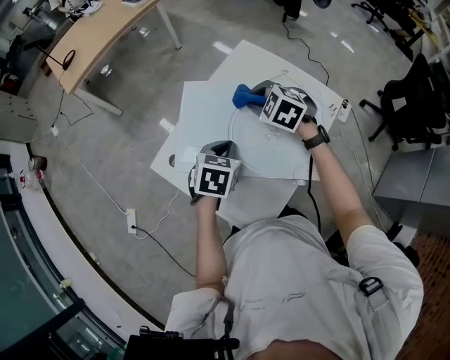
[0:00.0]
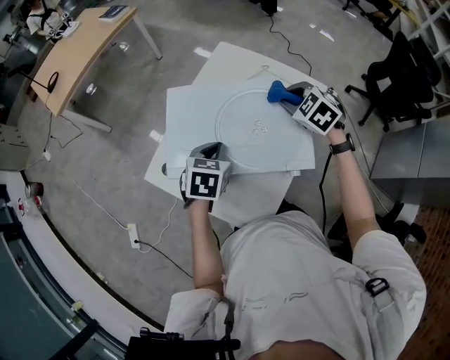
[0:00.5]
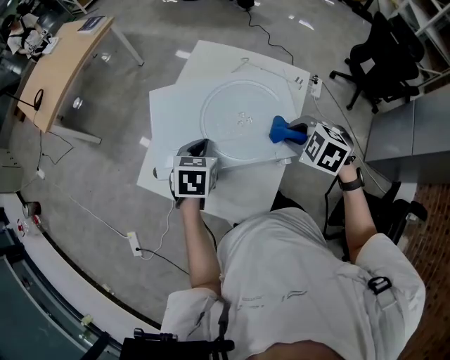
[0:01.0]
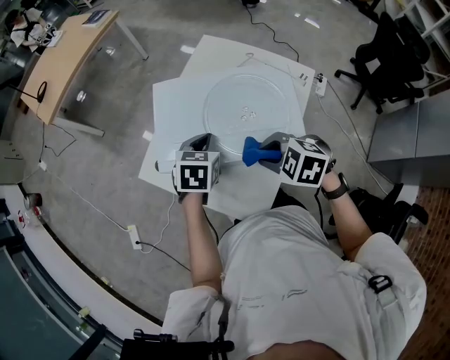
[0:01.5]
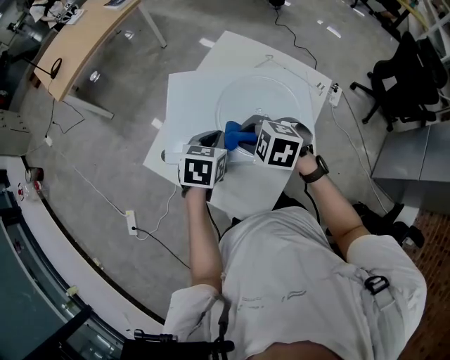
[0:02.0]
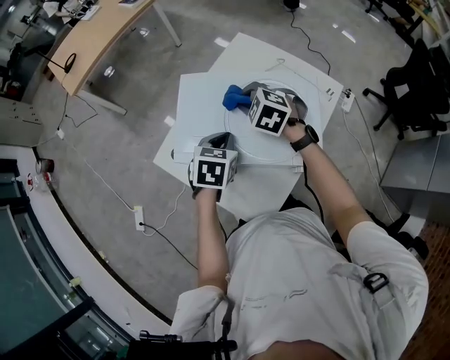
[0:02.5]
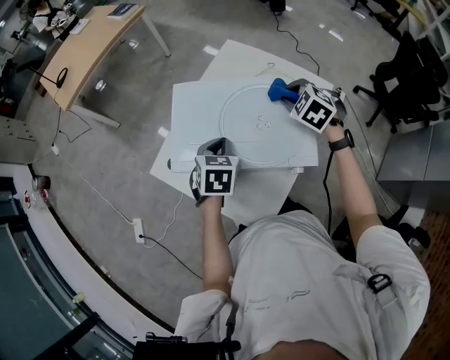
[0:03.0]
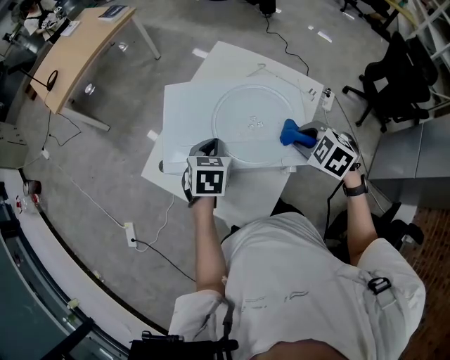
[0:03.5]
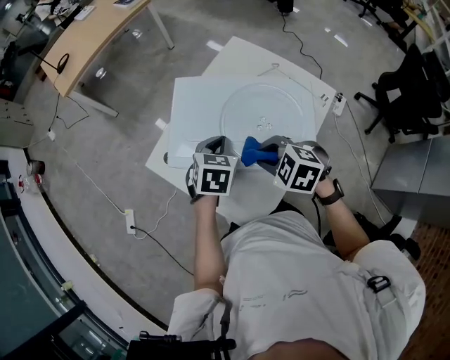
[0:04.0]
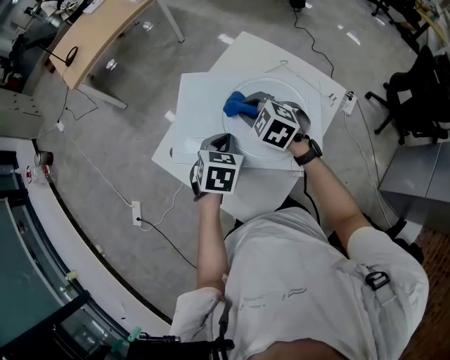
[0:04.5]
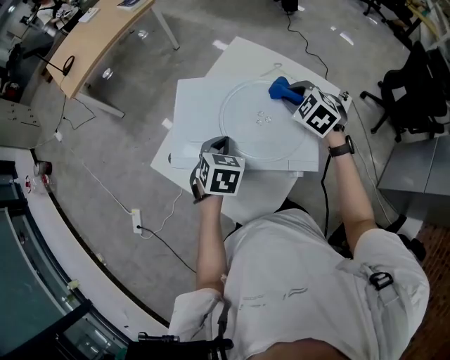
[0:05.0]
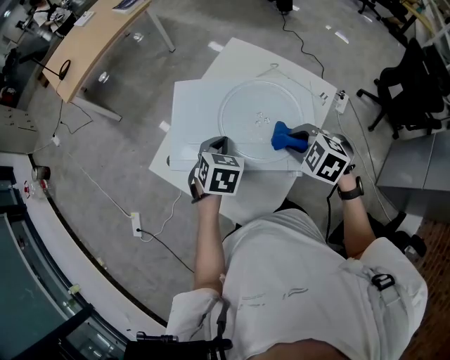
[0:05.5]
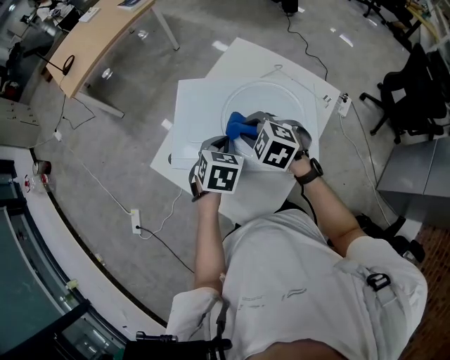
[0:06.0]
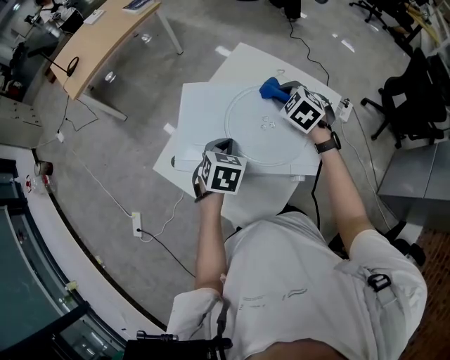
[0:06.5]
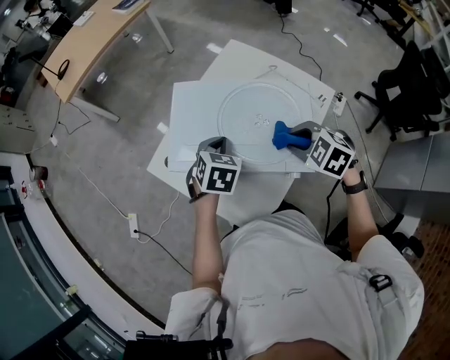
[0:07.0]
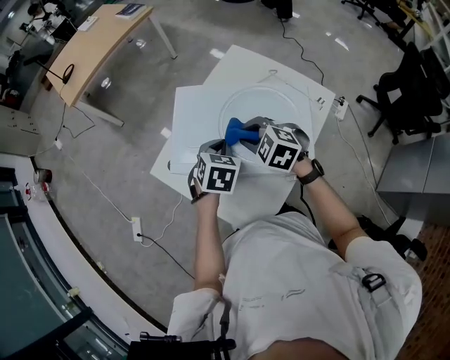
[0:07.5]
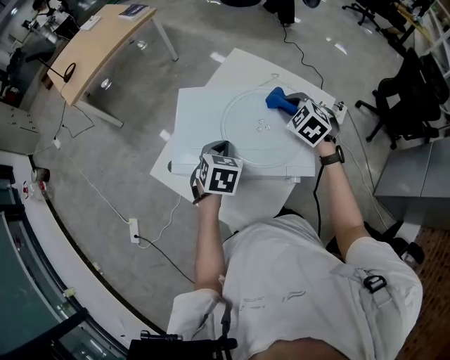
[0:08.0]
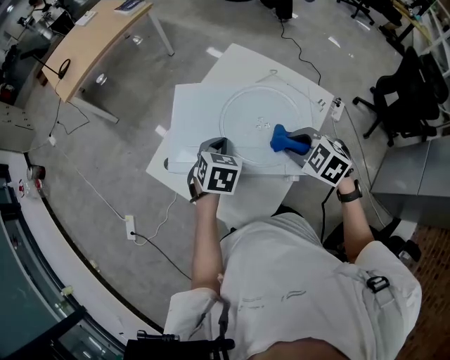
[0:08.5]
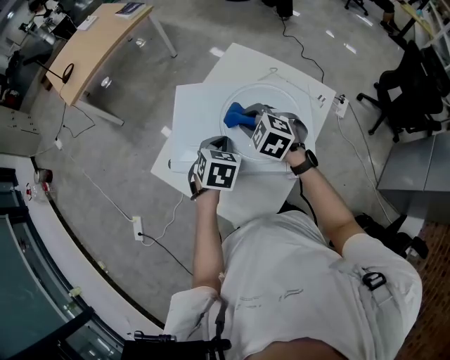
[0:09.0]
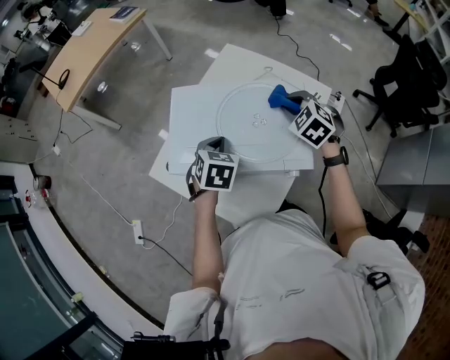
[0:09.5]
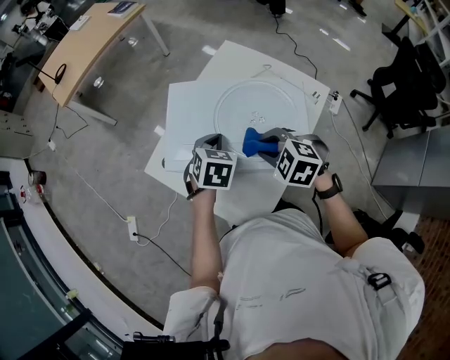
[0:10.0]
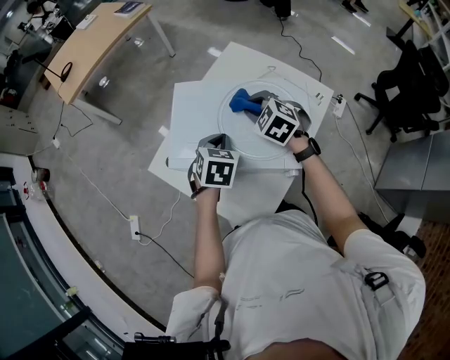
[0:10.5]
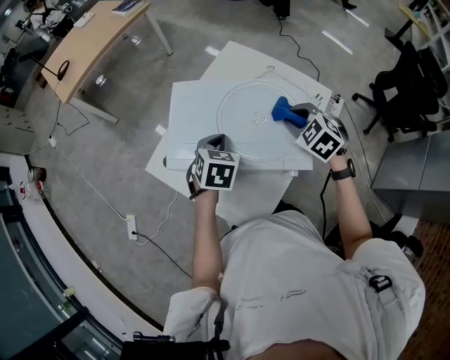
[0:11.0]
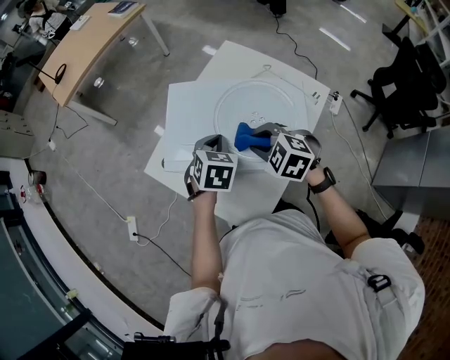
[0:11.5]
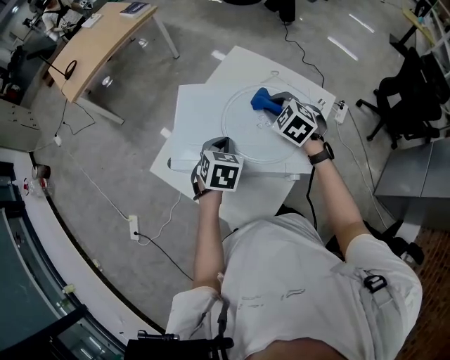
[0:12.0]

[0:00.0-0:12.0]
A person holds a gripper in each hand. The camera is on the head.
0:00.0 to 0:02.0: The right gripper goes about 15 cm backward.
0:02.0 to 0:04.0: The right gripper travels to the right and back again, approximately 15 cm each way.
0:04.0 to 0:06.0: The right gripper goes some 10 cm forward, and moves some 15 cm to the right and comes back.
0:06.0 to 0:08.0: The right gripper swings forward and backward, roughly 15 cm each way, with 2 reversals.
0:08.0 to 0:10.0: The right gripper goes left and right, approximately 15 cm each way, reversing 2 times, and rotates roughly 20 degrees.
0:10.0 to 0:12.0: The right gripper swings forward and backward, about 15 cm each way, with 2 reversals.

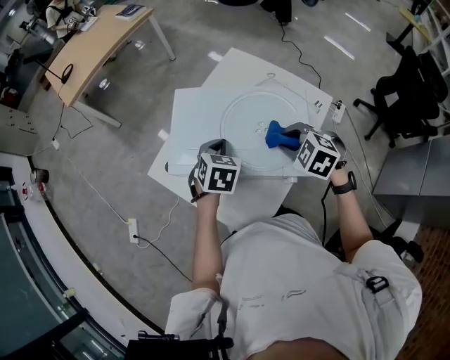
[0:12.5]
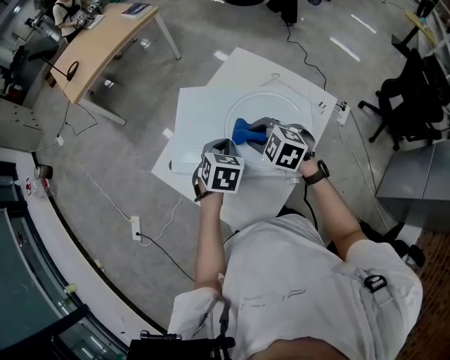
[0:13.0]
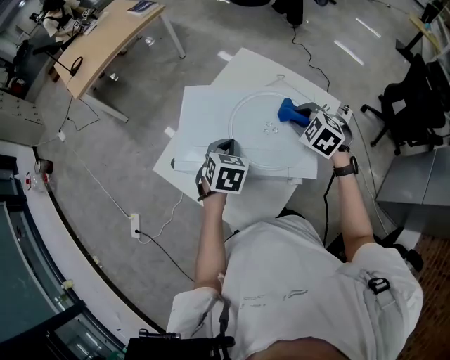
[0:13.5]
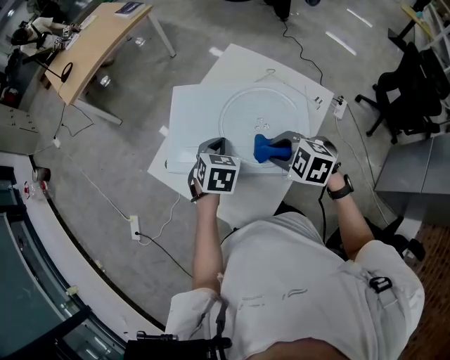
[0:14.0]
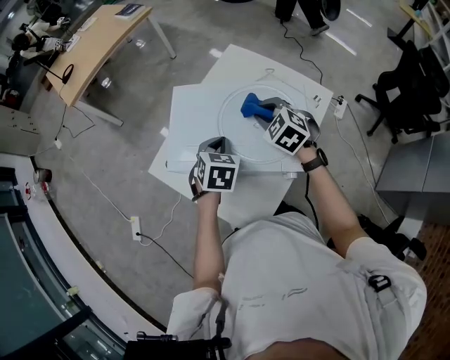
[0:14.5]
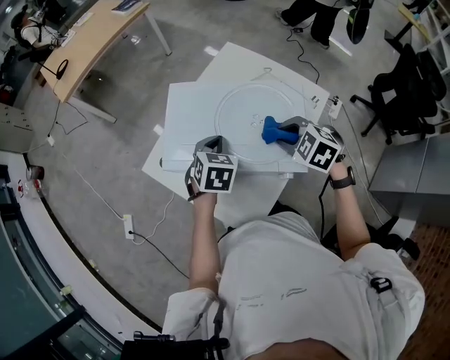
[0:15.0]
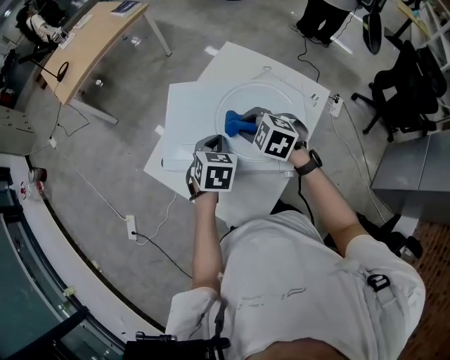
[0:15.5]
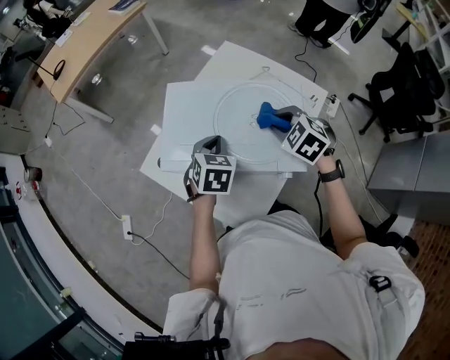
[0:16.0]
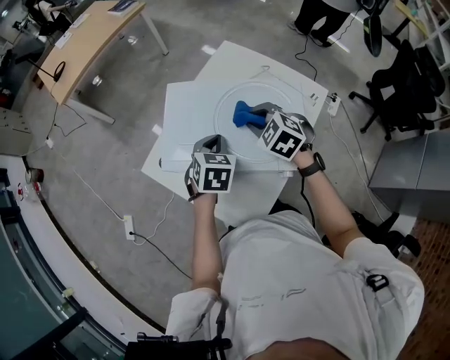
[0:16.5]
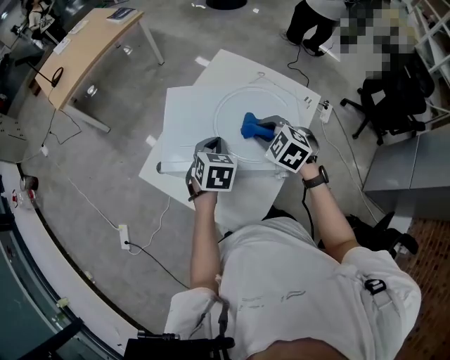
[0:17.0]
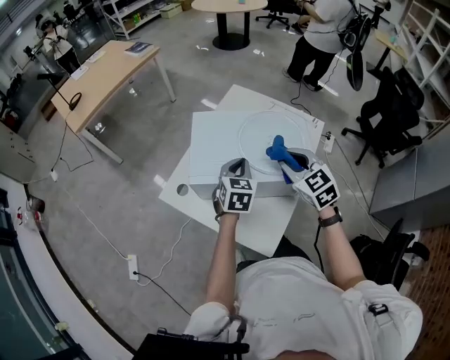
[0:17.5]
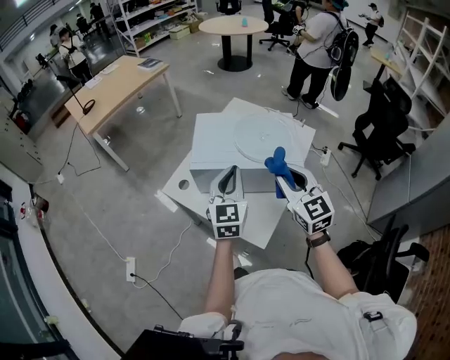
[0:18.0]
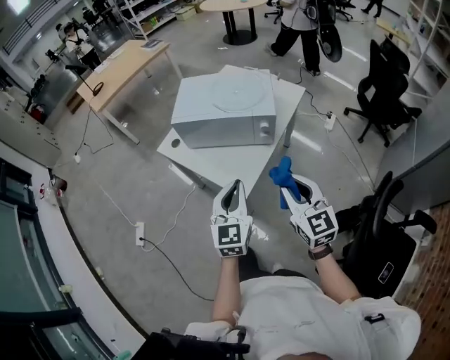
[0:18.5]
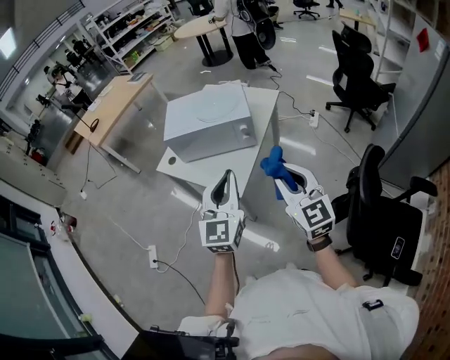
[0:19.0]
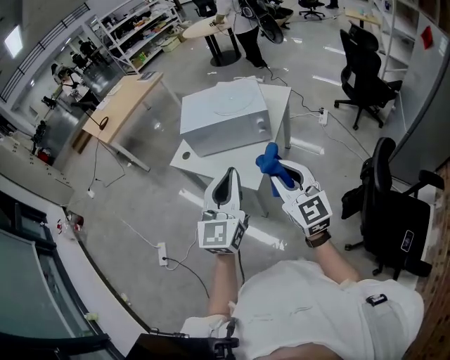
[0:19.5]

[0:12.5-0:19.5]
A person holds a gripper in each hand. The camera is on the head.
0:12.5 to 0:14.5: The right gripper swings left and right, about 15 cm each way, with 2 reversals.
0:16.0 to 0:17.5: The right gripper heads backward, upward and to the left, covering roughly 10 cm, and rotates approximately 30 degrees.
0:17.5 to 0:19.5: The two grippers travel together, backward, approximately 40 cm. The right gripper tilts its fingers approximately 30 degrees upward; the left gripper goes roughly 25 cm upward, and tips its fingers upward by roughly 40 degrees.

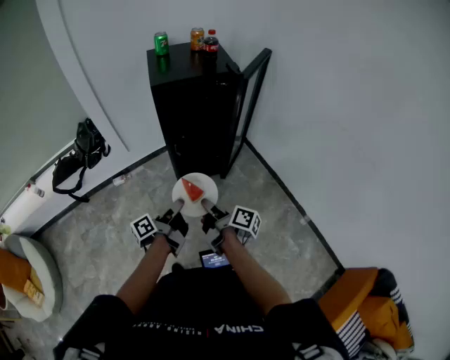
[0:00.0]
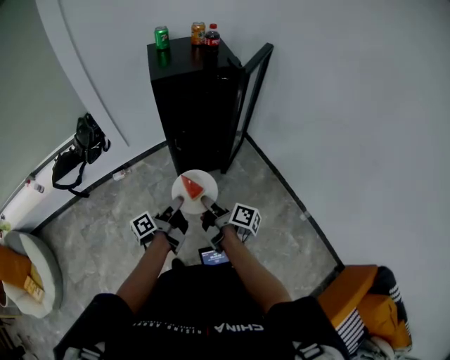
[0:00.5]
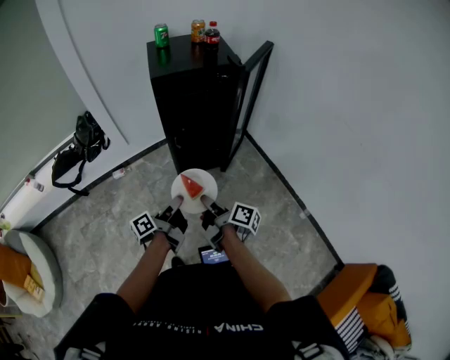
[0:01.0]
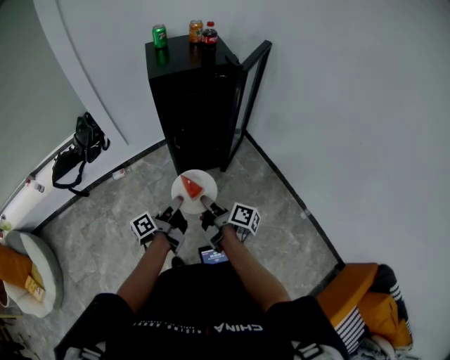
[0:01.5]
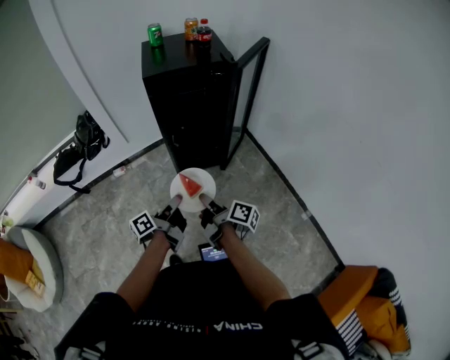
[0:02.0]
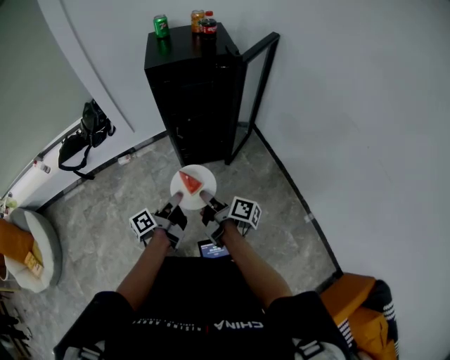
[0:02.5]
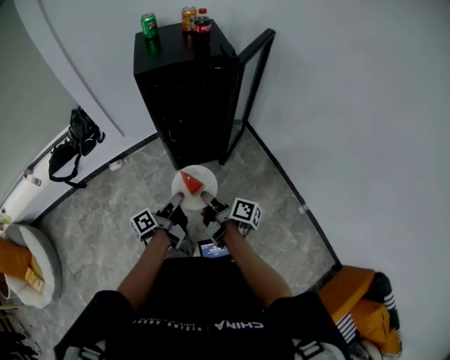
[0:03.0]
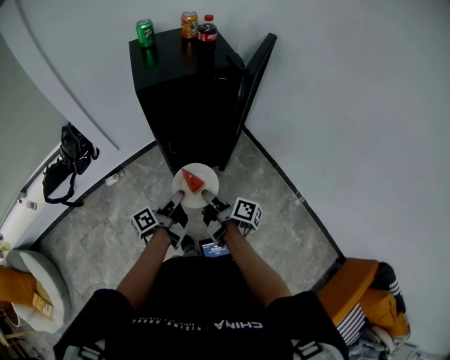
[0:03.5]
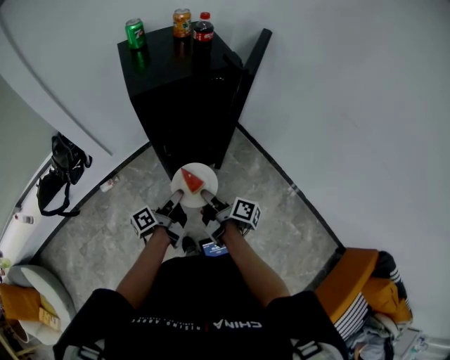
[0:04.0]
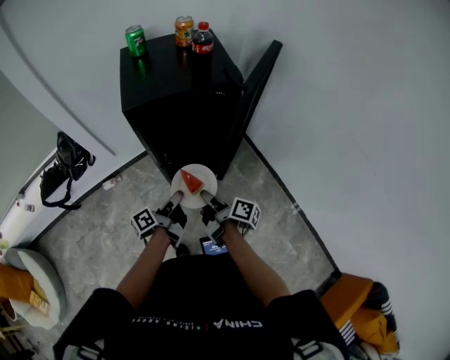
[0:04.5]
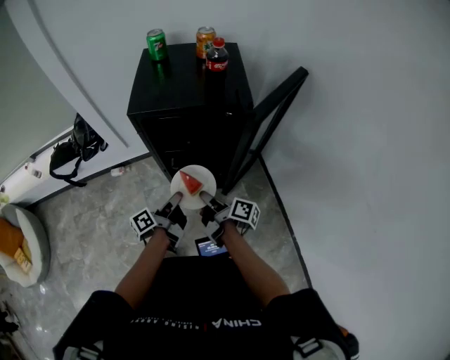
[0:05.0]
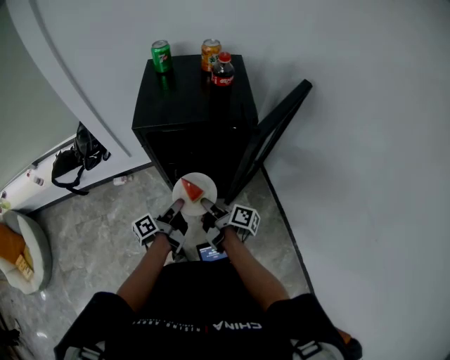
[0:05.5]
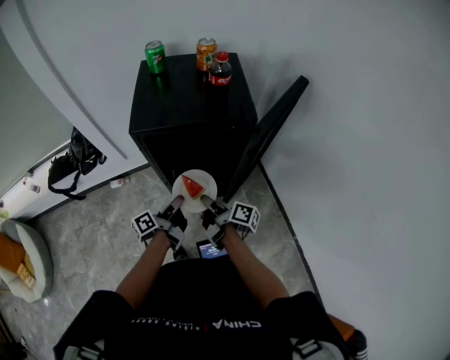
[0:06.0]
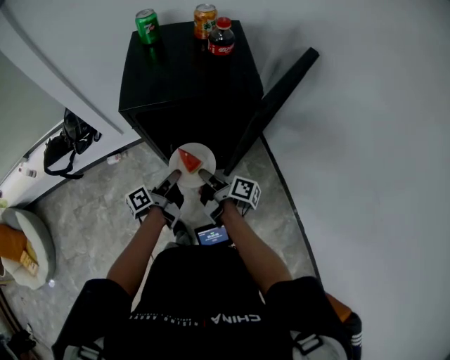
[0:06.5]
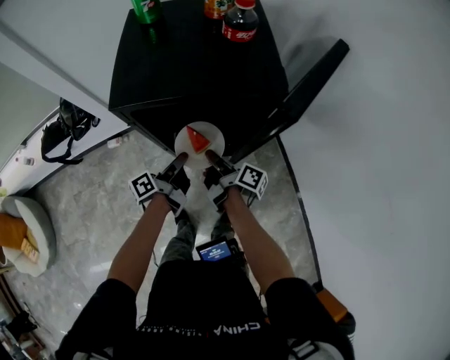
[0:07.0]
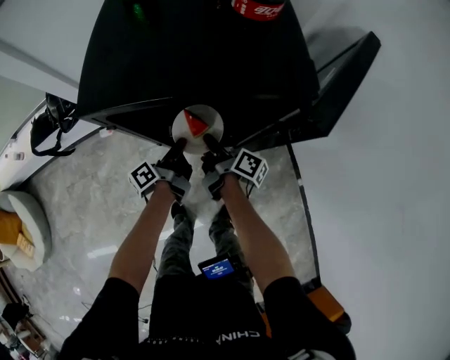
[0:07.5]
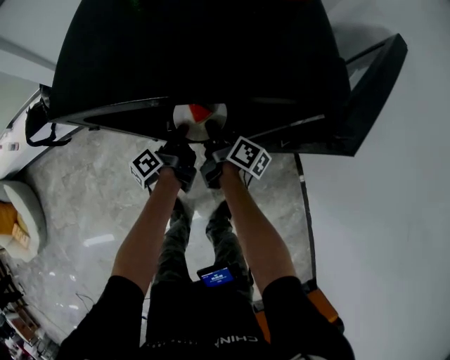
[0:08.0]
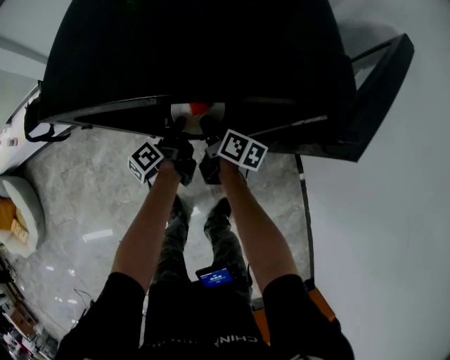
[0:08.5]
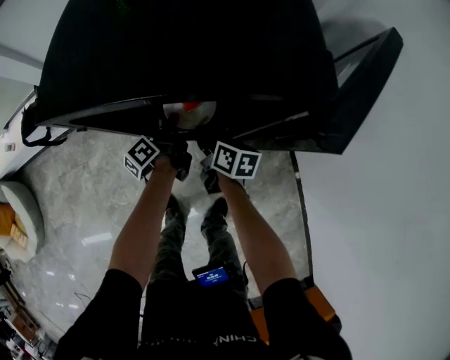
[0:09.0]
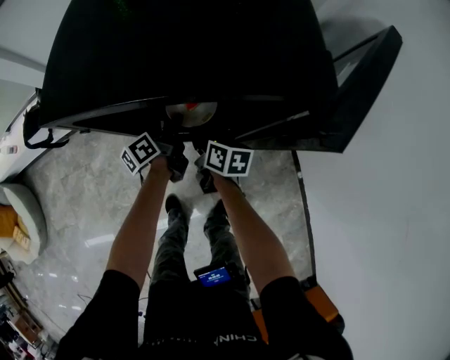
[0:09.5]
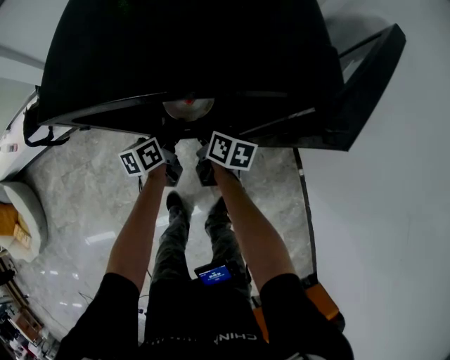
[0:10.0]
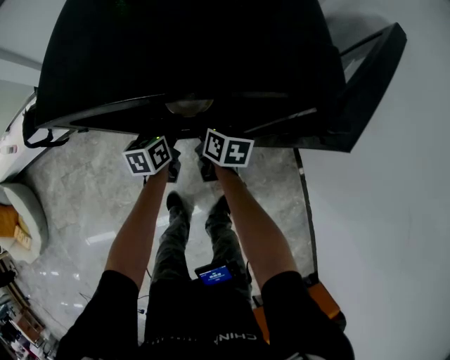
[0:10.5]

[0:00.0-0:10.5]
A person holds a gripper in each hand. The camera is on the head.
0:00.0 to 0:02.0: The grippers make only small movements.
0:02.0 to 0:04.0: The grippers both shift forward by about 15 cm.
0:04.0 to 0:06.5: Both grippers move forward and to the right, some 20 cm.
0:06.5 to 0:08.5: Both grippers travel together forward and downward, approximately 25 cm. The right gripper changes its angle by roughly 30 degrees.
0:08.5 to 0:10.5: The left gripper rolls clockwise, seen from behind, by approximately 50 degrees; the right gripper swivels approximately 20 degrees.
